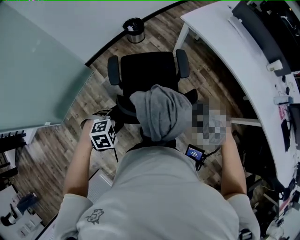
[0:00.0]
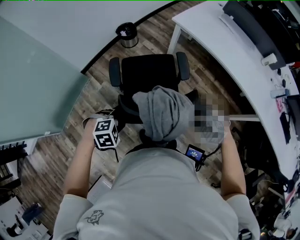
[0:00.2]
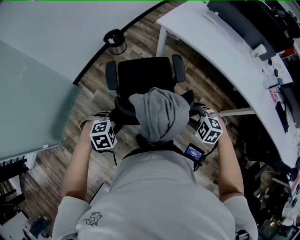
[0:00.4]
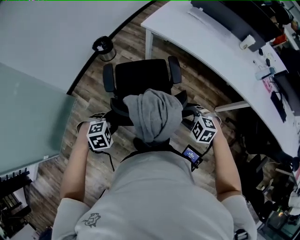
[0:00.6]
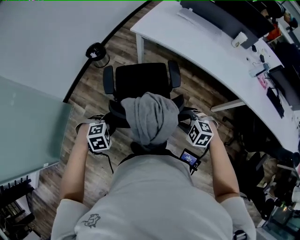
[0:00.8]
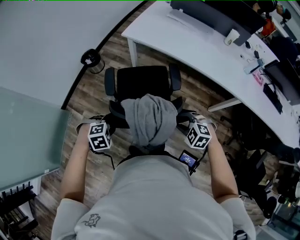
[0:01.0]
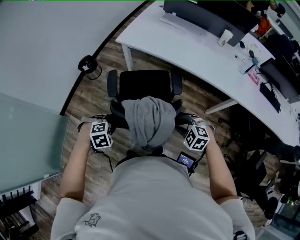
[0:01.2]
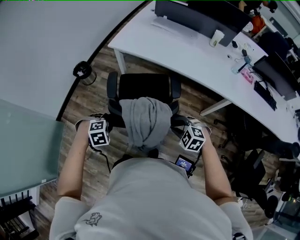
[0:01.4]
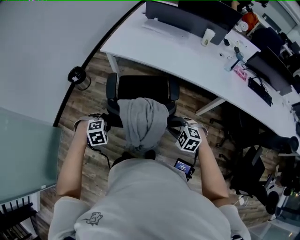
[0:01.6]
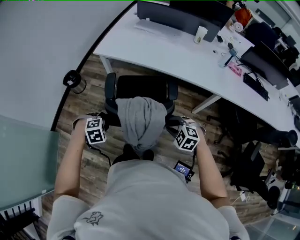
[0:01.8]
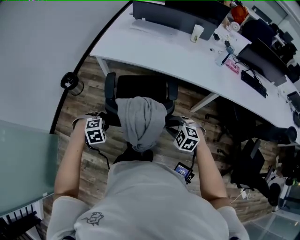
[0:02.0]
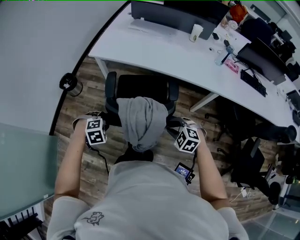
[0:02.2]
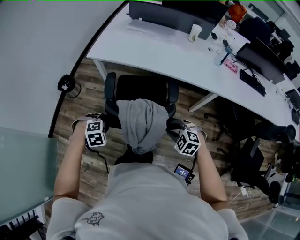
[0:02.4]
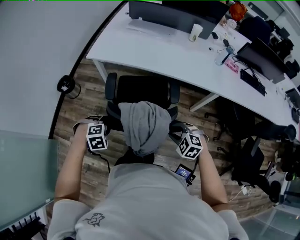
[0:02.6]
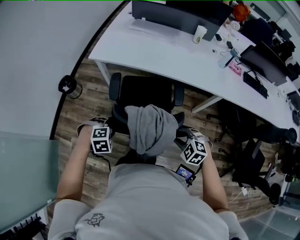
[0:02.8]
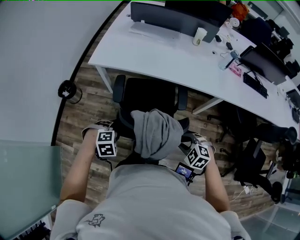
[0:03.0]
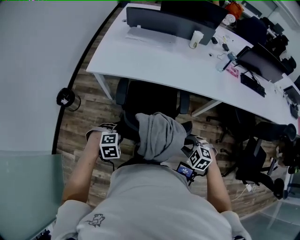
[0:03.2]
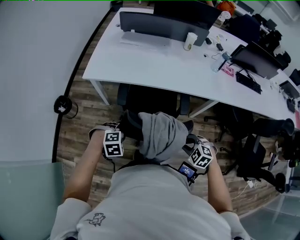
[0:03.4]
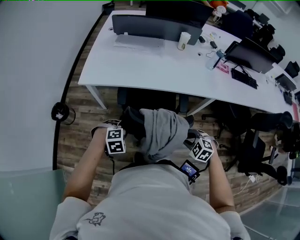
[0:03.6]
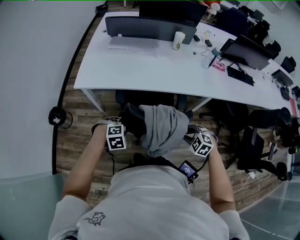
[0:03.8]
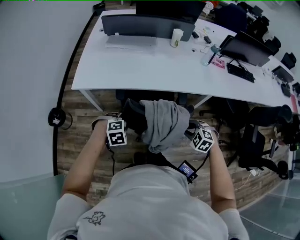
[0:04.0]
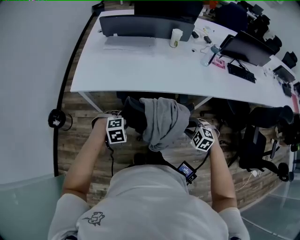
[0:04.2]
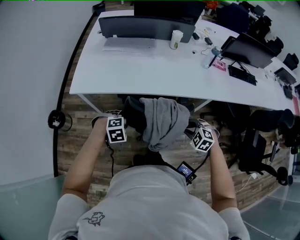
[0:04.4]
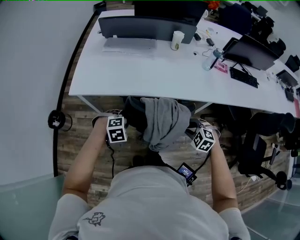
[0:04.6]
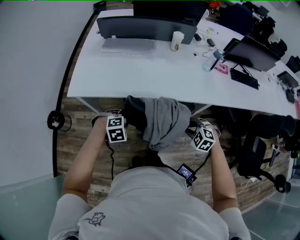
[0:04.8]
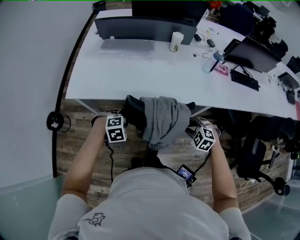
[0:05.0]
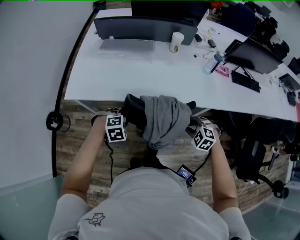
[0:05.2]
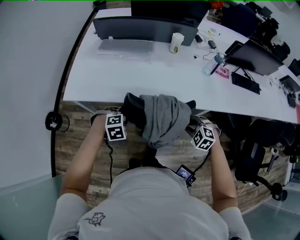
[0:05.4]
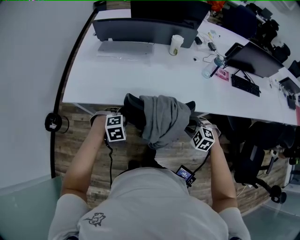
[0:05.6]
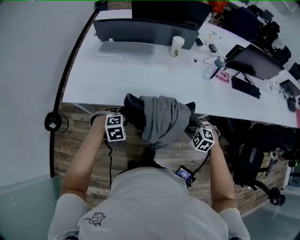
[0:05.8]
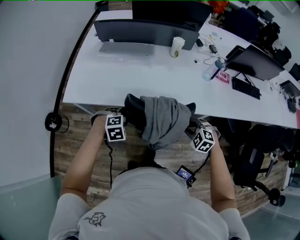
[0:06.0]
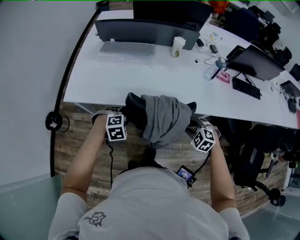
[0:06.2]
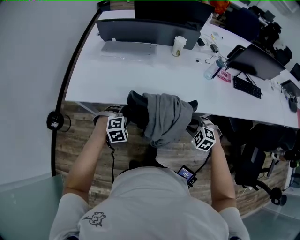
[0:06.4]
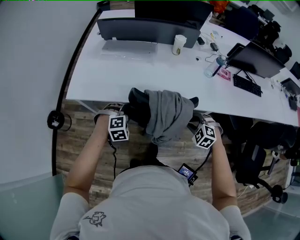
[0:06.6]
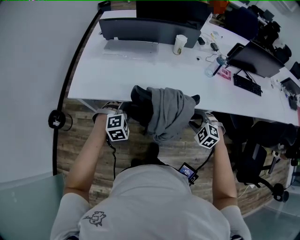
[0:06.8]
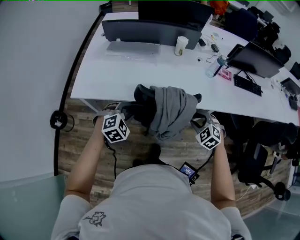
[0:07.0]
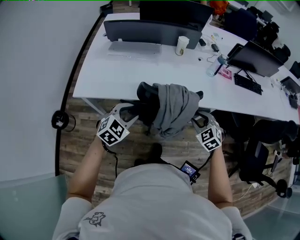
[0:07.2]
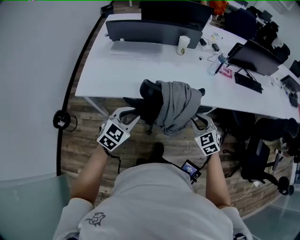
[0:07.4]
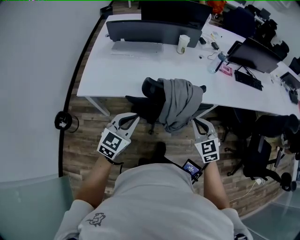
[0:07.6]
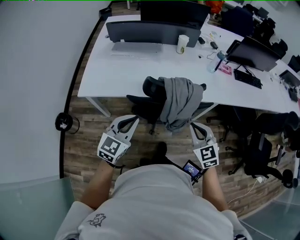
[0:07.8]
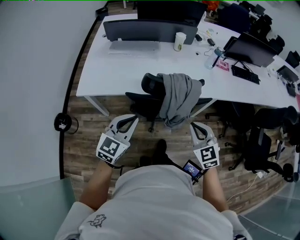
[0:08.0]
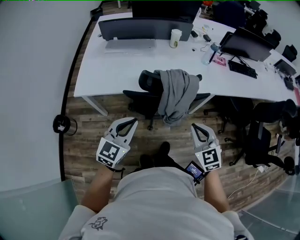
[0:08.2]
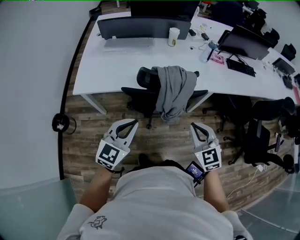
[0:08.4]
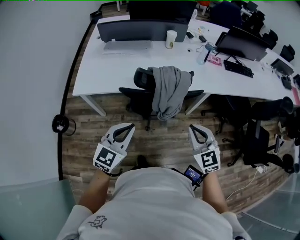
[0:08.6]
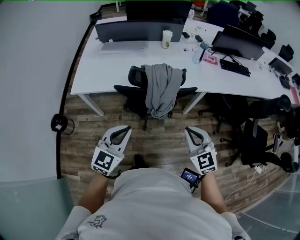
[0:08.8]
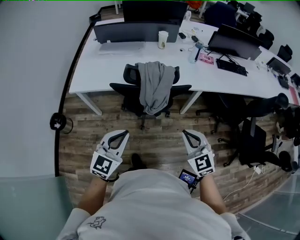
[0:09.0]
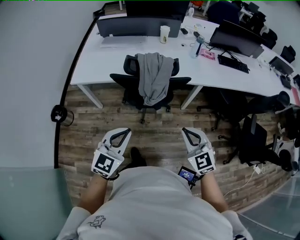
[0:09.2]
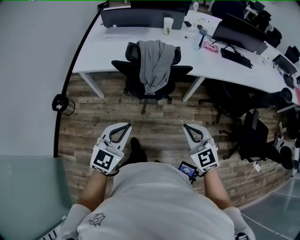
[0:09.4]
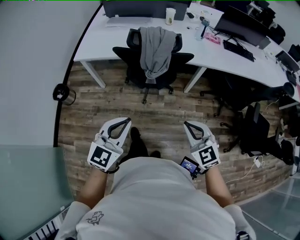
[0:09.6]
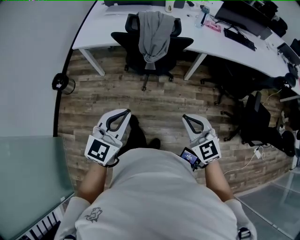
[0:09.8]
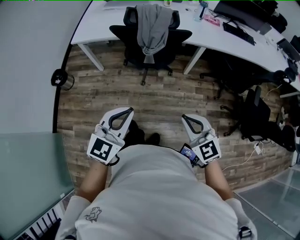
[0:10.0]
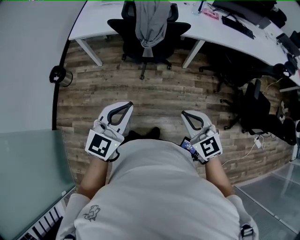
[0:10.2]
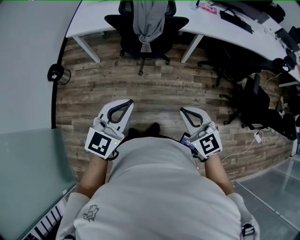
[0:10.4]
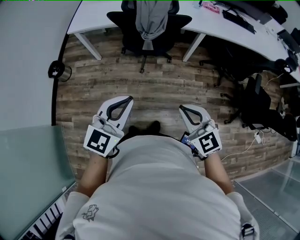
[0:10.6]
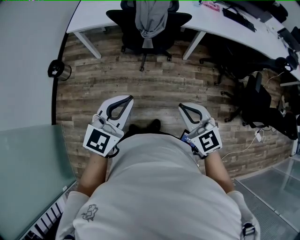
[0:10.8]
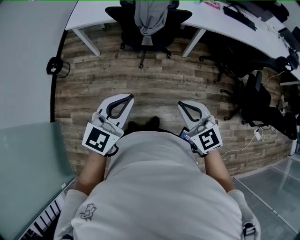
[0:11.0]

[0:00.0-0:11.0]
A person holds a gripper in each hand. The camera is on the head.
0:00.0 to 0:01.6: The left gripper ends up about 30 cm from where it was, and turns by some 30 degrees, while the right gripper shifts by approximately 30 cm, and changes its angle by about 30 degrees.
0:01.6 to 0:03.2: The left gripper ends up roughly 10 cm from where it was.
0:03.2 to 0:04.8: Both grippers travel together forward, some 25 cm.
0:04.8 to 0:06.2: Both grippers move forward, some 10 cm.
0:06.2 to 0:07.8: The left gripper shifts approximately 25 cm upward and backward, tilts its fingers approximately 50 degrees upward, and closes up. Meanwhile the right gripper moves backward, upward and to the left, approximately 25 cm, points its fingers some 30 degrees further upward, and closes its fingers.
0:07.8 to 0:09.4: The two grippers go roughly 30 cm backward and to the right.
0:09.4 to 0:11.0: The two grippers go some 15 cm backward.

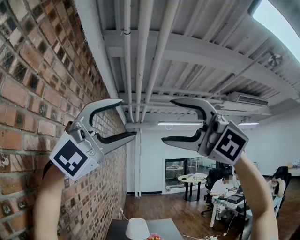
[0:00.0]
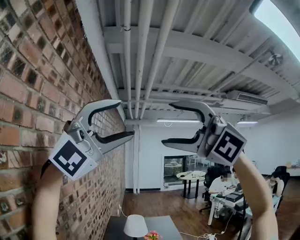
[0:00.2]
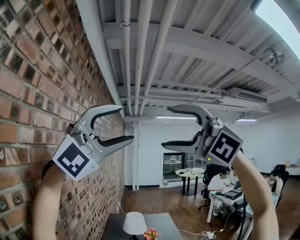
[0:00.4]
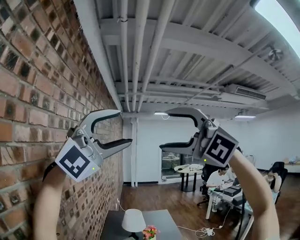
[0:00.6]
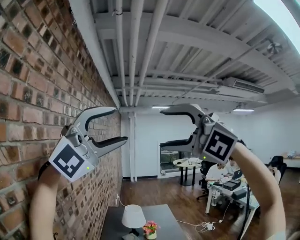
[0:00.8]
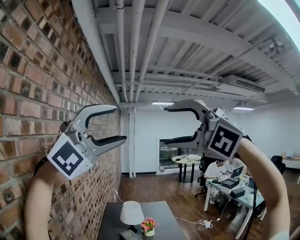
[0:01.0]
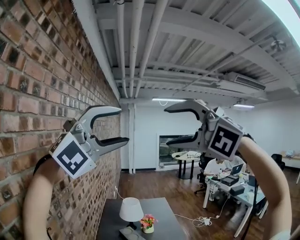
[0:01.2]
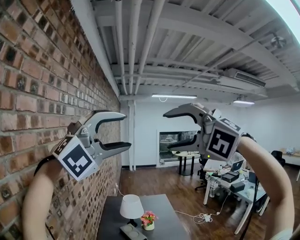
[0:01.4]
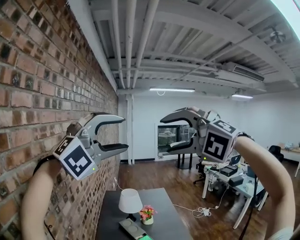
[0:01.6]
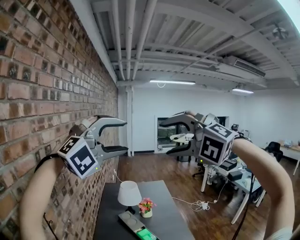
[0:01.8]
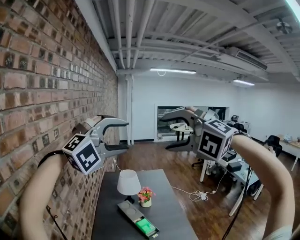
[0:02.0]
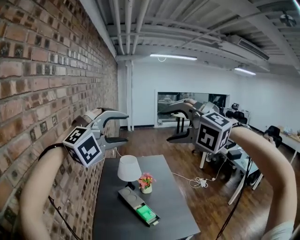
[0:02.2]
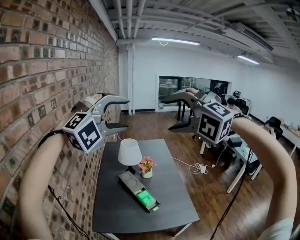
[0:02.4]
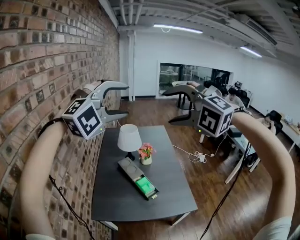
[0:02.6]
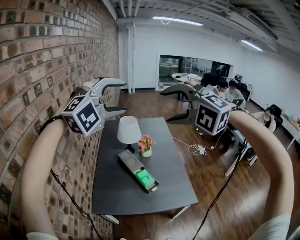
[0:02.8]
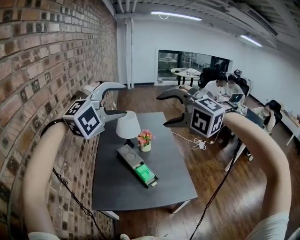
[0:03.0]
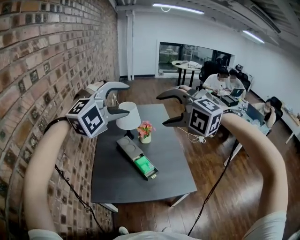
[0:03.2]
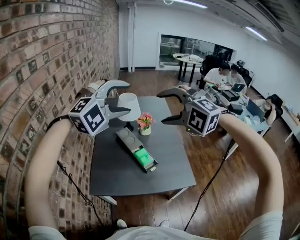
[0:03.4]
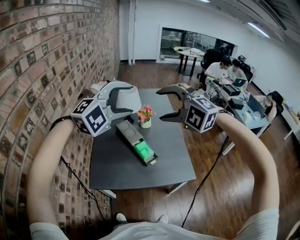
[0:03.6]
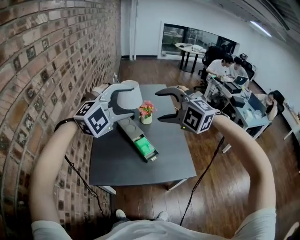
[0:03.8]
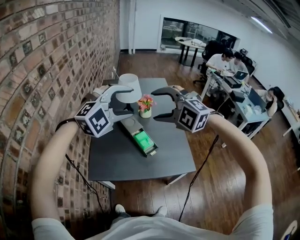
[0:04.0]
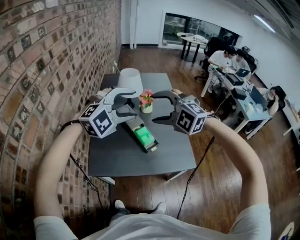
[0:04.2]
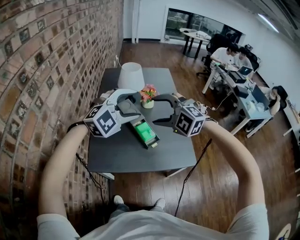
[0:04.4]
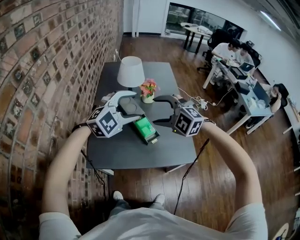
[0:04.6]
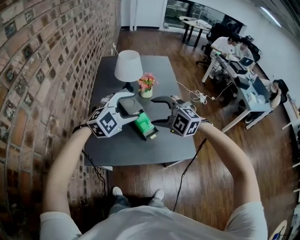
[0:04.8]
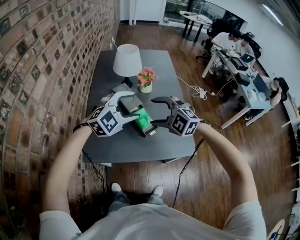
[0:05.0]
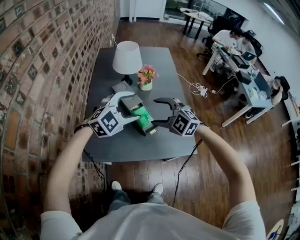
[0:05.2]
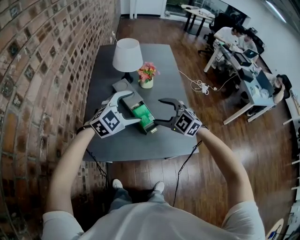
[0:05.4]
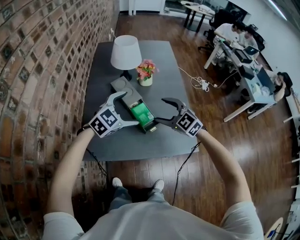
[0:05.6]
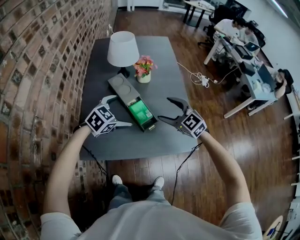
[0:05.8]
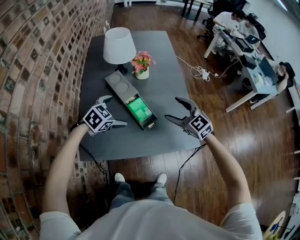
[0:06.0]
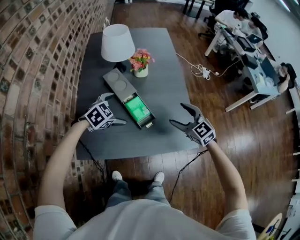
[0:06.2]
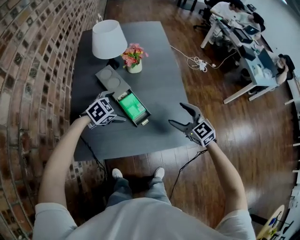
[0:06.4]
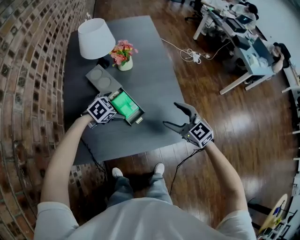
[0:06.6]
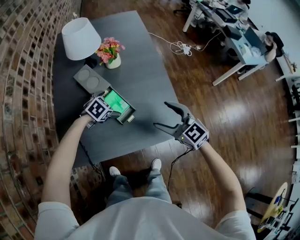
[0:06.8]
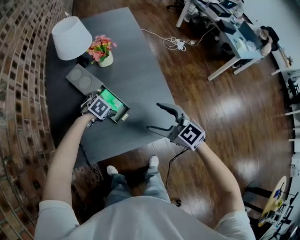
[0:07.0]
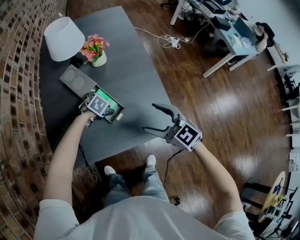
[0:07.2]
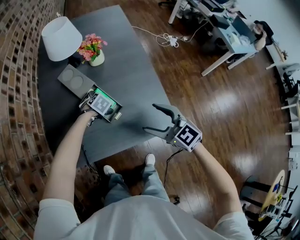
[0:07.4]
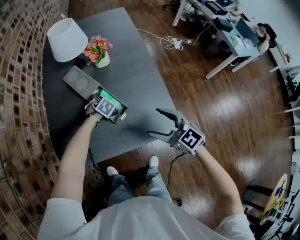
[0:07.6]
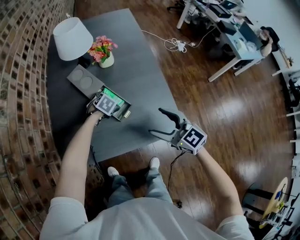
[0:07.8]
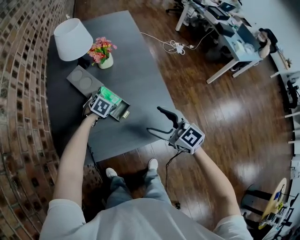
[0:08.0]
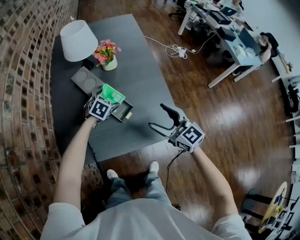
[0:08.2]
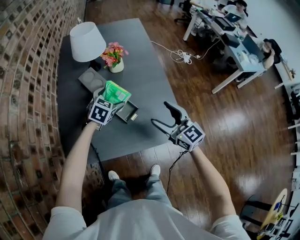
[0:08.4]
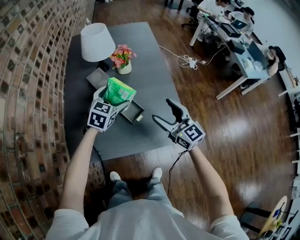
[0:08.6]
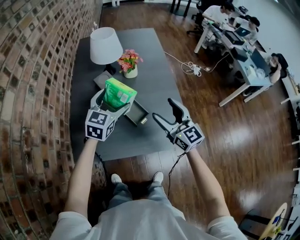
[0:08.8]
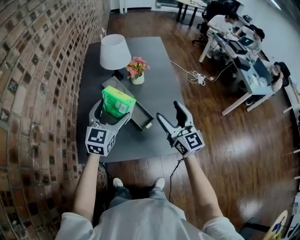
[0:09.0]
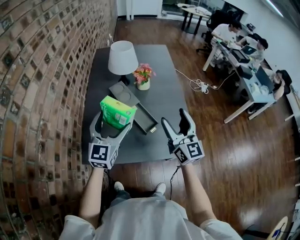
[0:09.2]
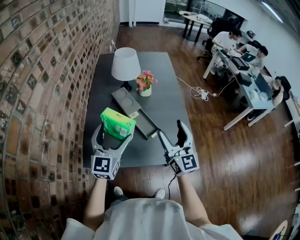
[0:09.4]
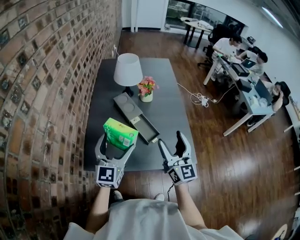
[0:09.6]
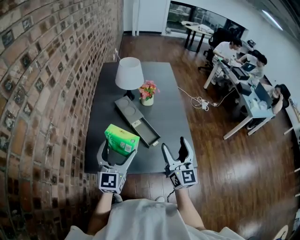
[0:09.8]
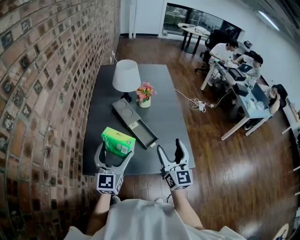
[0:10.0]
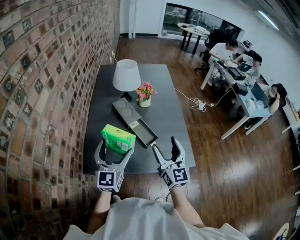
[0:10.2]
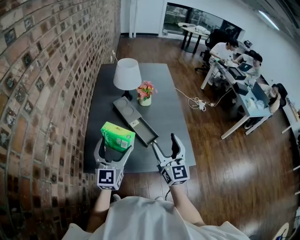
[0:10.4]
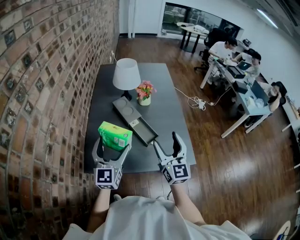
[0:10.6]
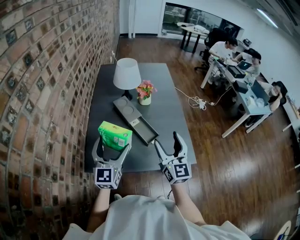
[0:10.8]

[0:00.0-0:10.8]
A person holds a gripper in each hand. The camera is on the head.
0:00.0 to 0:01.6: The left gripper changes place by roughly 20 cm, and turns by about 30 degrees. The right gripper changes place by roughly 20 cm, and swivels some 40 degrees.
0:01.6 to 0:03.0: The two grippers go approximately 25 cm downward. The left gripper swivels approximately 30 degrees. Meanwhile the right gripper turns by some 20 degrees.
0:03.0 to 0:04.6: Both grippers move downward, about 25 cm. The left gripper rotates approximately 30 degrees. Meanwhile the right gripper turns by approximately 30 degrees.
0:04.6 to 0:06.2: The right gripper goes roughly 25 cm downward and to the right, and rolls clockwise, seen from behind, by approximately 50 degrees. The left gripper moves downward, approximately 25 cm, tilts its fingers approximately 30 degrees downward, and opens its fingers.
0:06.2 to 0:07.8: The left gripper shifts approximately 20 cm downward, to the right and forward, and changes its angle by approximately 20 degrees. Meanwhile the right gripper moves backward, roughly 10 cm.
0:07.8 to 0:09.2: The right gripper goes roughly 15 cm upward, and rotates some 40 degrees. Meanwhile the left gripper shifts approximately 35 cm upward and backward, and points its fingers roughly 70 degrees further upward.
0:09.2 to 0:10.8: The grippers both shift backward by roughly 5 cm.

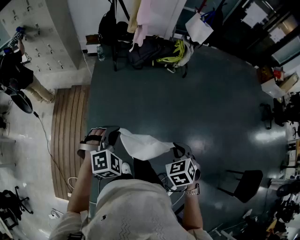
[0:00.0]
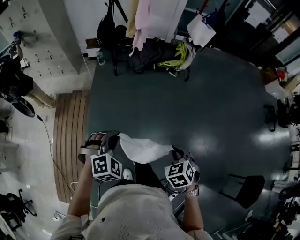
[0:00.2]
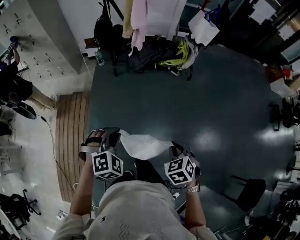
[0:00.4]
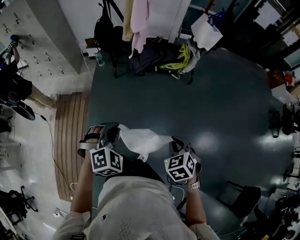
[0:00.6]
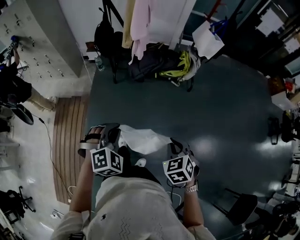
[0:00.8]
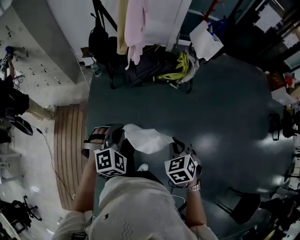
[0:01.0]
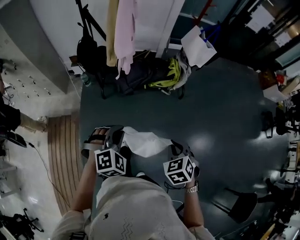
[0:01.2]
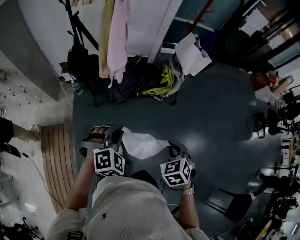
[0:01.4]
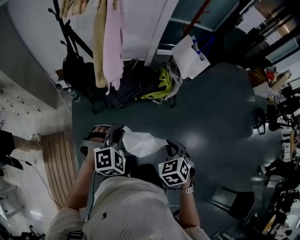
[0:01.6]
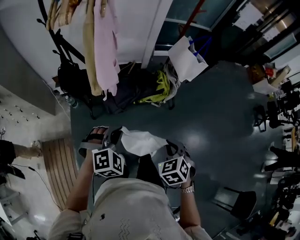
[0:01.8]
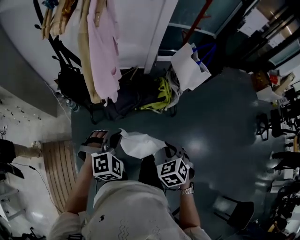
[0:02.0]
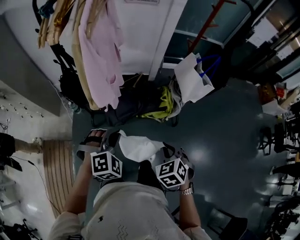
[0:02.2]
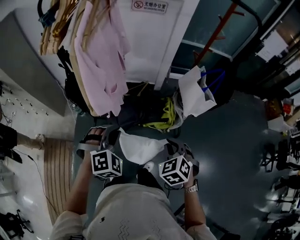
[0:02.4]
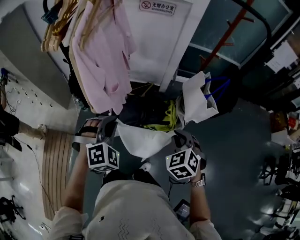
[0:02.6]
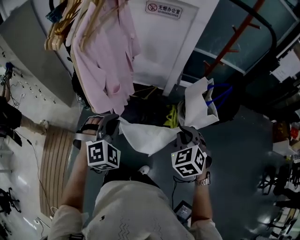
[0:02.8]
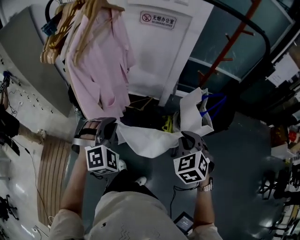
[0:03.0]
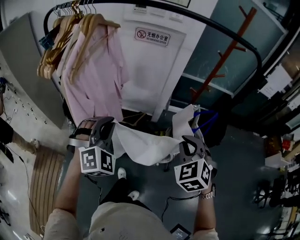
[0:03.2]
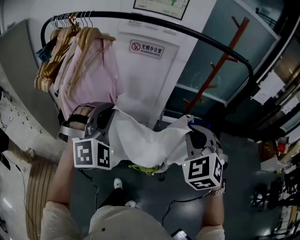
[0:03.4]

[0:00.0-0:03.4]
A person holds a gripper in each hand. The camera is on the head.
0:00.0 to 0:01.6: The two grippers travel together, forward, some 60 cm.
0:01.6 to 0:03.4: The pair of grippers is taken about 50 cm. The right gripper rotates about 40 degrees. Meanwhile the left gripper swivels some 40 degrees.
